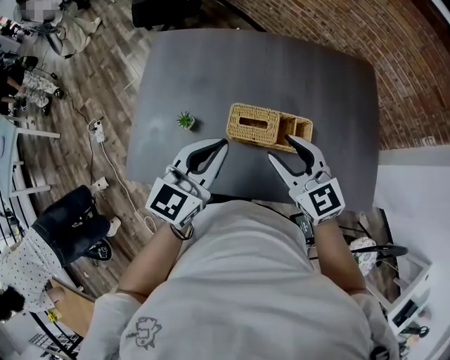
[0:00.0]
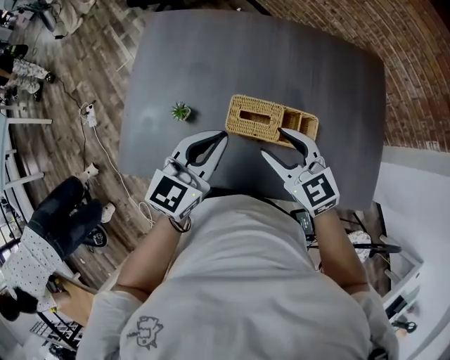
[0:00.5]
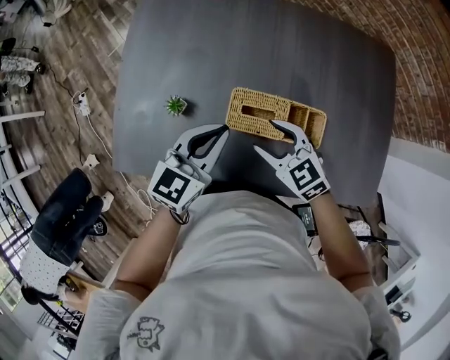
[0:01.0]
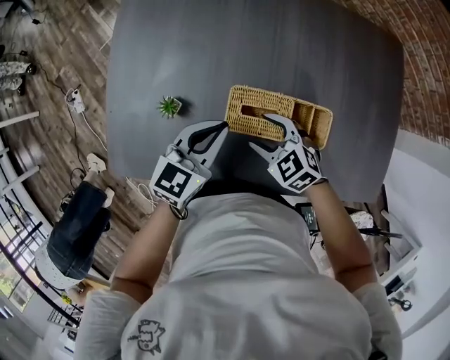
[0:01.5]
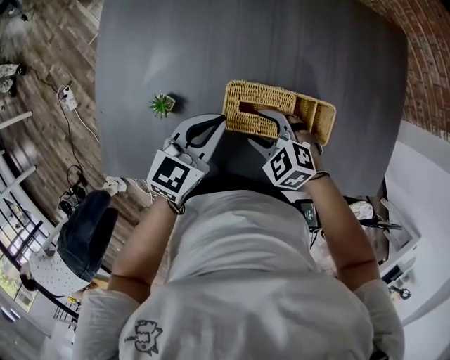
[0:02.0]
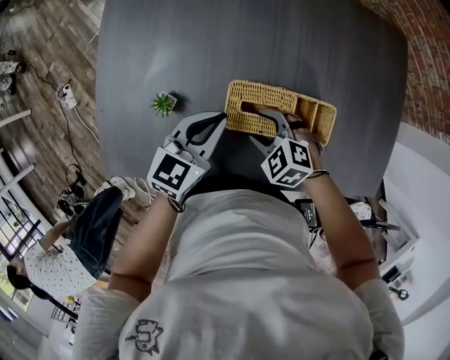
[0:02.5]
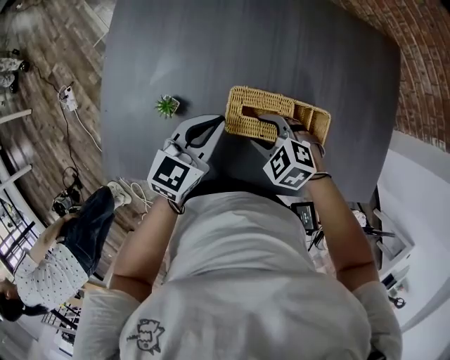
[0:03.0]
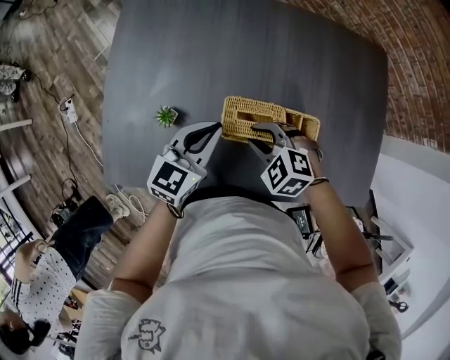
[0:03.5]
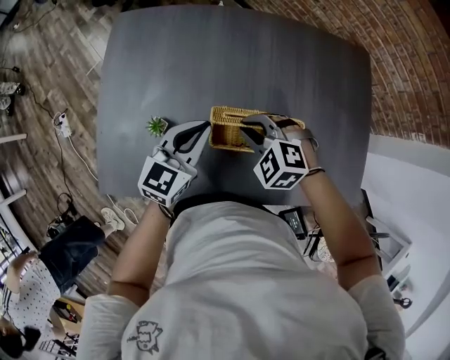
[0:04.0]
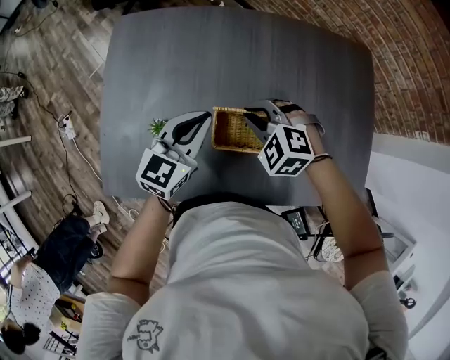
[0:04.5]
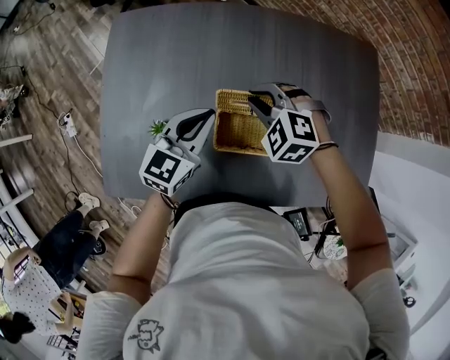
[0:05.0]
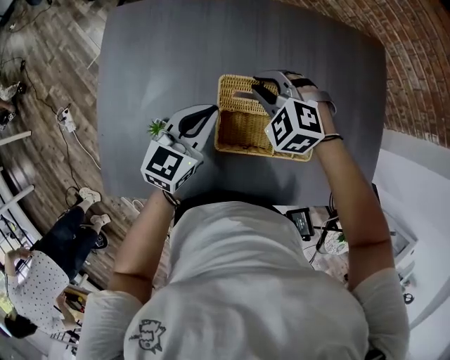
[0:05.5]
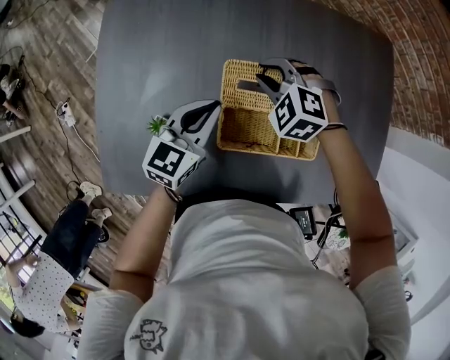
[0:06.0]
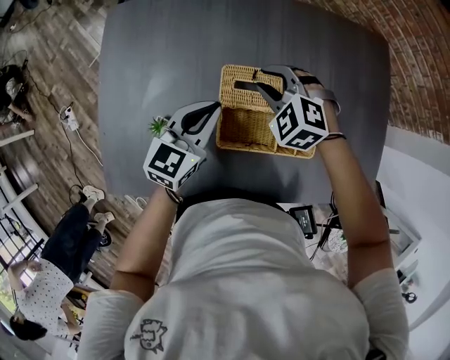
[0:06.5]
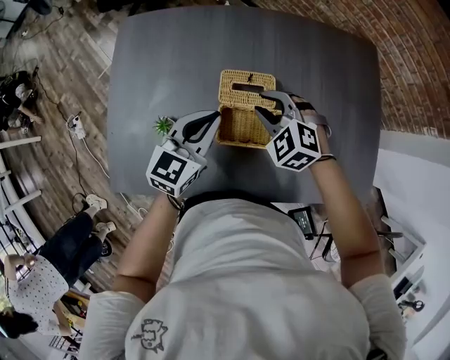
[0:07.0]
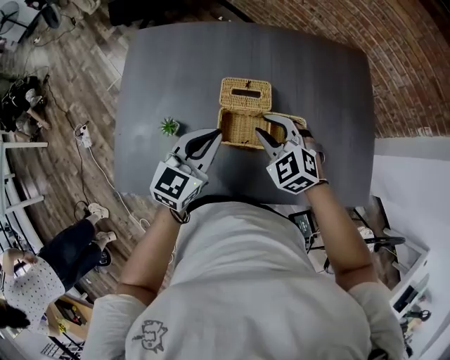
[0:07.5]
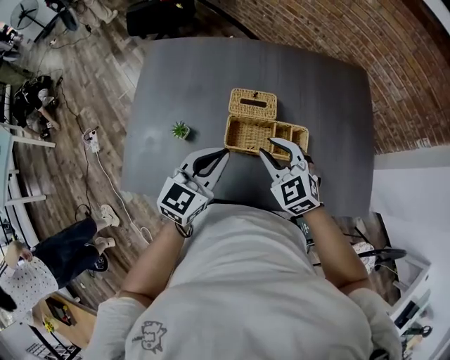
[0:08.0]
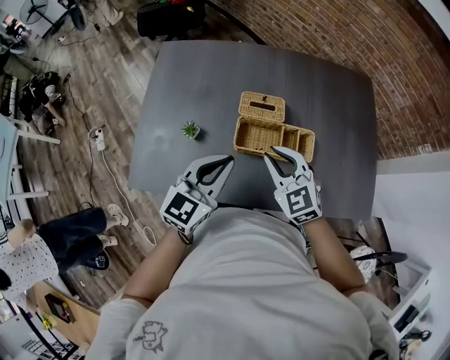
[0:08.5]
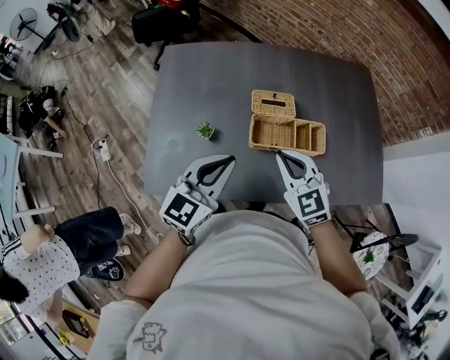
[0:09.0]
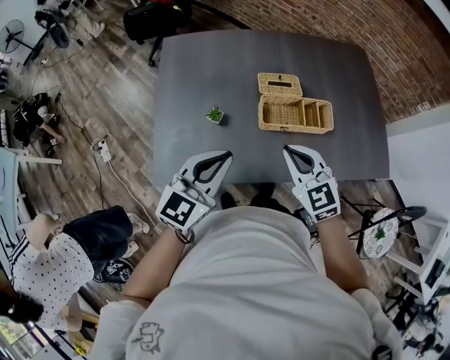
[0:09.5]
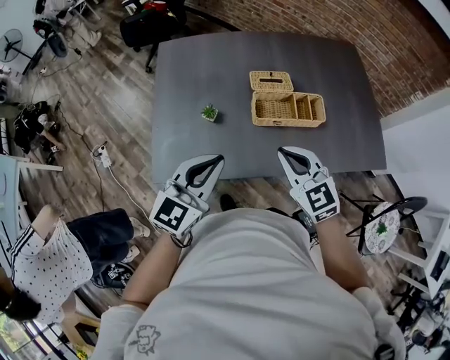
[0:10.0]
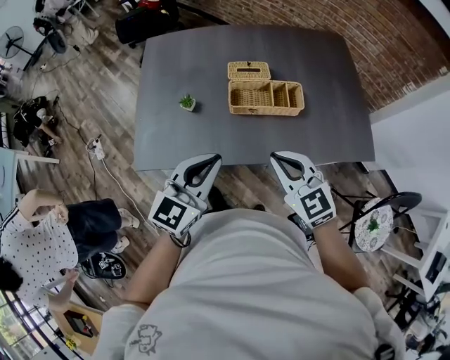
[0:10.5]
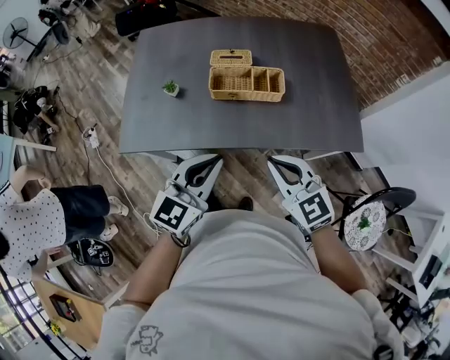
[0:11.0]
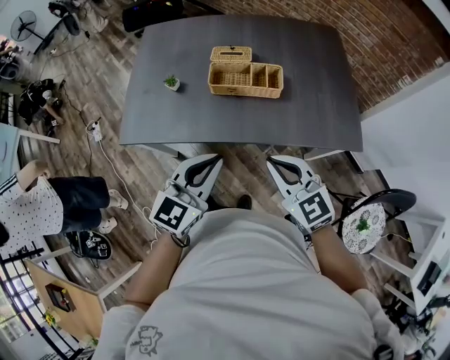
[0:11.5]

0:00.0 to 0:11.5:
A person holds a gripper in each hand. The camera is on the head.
0:00.0 to 0:02.0: The right gripper moves downward, roughly 25 cm, and tilts its fingers roughly 40 degrees downward, while the left gripper shifts approximately 20 cm downward and forward.
0:02.0 to 0:04.0: The left gripper is displaced upward by roughly 5 cm; the right gripper moves upward and forward, approximately 10 cm, and closes its fingers.
0:04.0 to 0:06.0: The right gripper shifts about 15 cm forward, while the left gripper shifts approximately 5 cm forward.
0:06.0 to 0:07.5: The two grippers go some 15 cm backward and upward. The right gripper turns by roughly 20 degrees.
0:07.5 to 0:09.5: Both grippers move backward, to the left and upward, approximately 20 cm. The right gripper rotates roughly 30 degrees, and closes.
0:09.5 to 0:11.5: The left gripper moves to the right and backward, approximately 25 cm; the right gripper shifts some 25 cm backward and to the right.

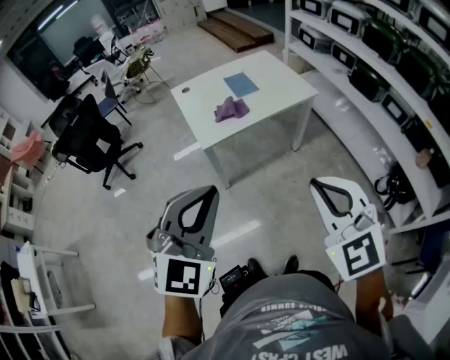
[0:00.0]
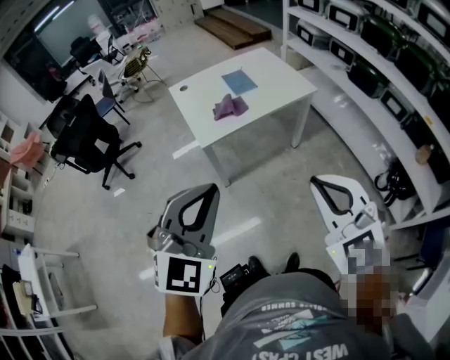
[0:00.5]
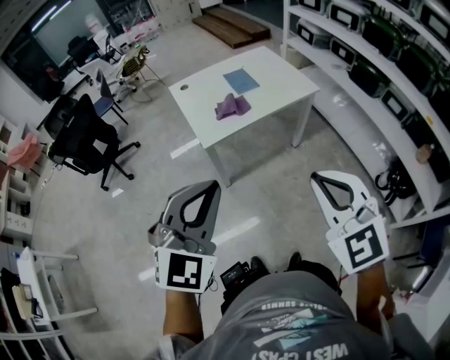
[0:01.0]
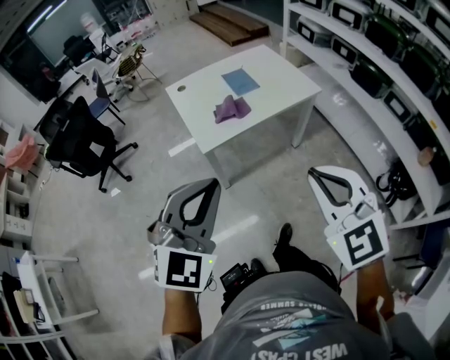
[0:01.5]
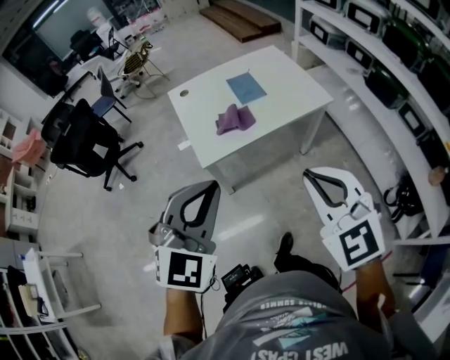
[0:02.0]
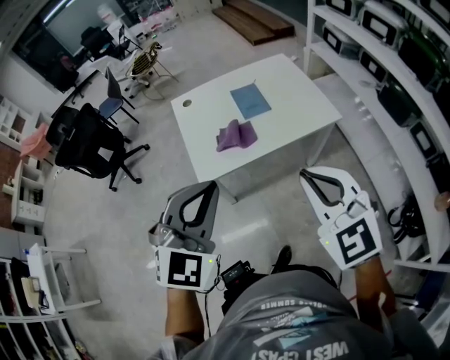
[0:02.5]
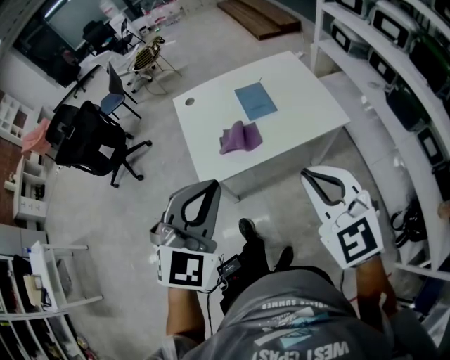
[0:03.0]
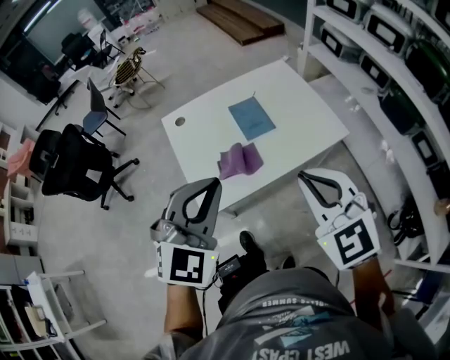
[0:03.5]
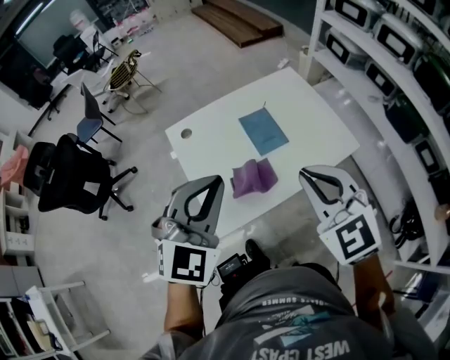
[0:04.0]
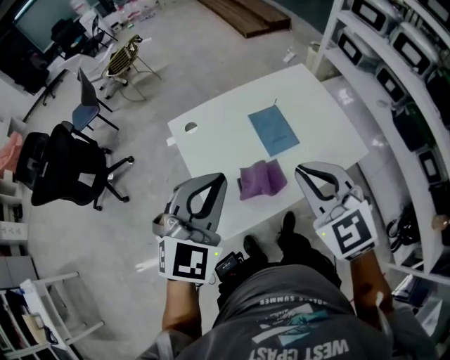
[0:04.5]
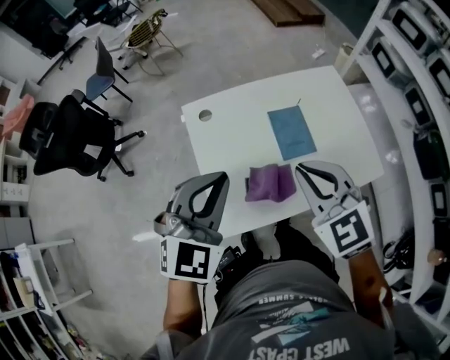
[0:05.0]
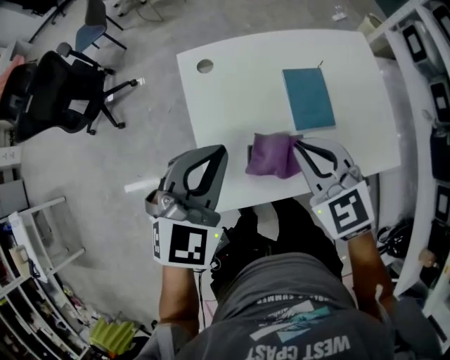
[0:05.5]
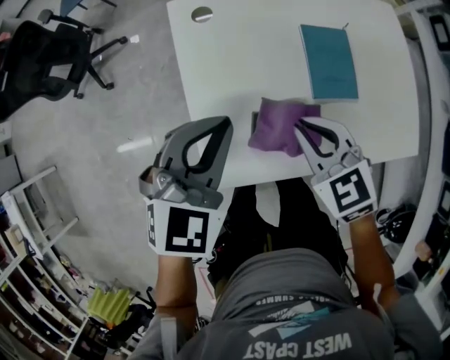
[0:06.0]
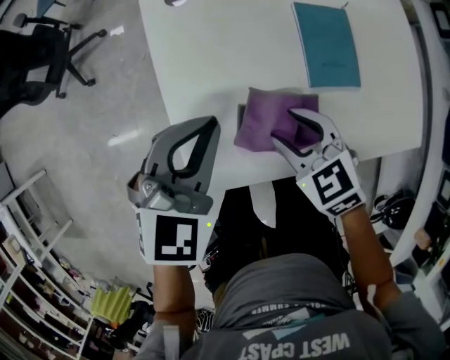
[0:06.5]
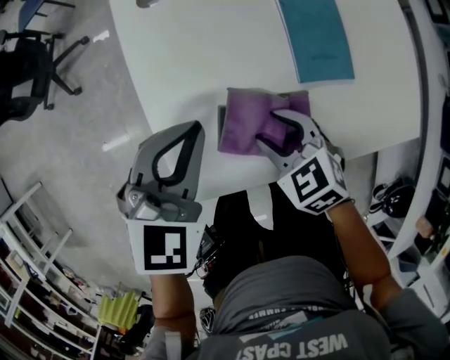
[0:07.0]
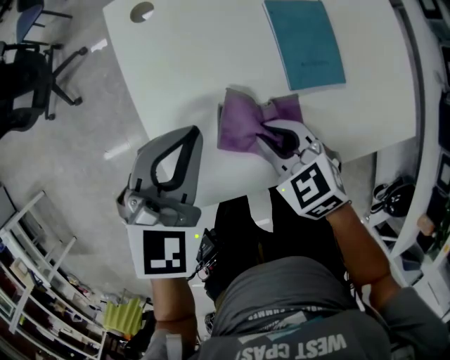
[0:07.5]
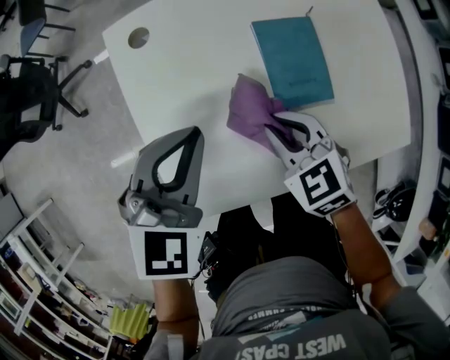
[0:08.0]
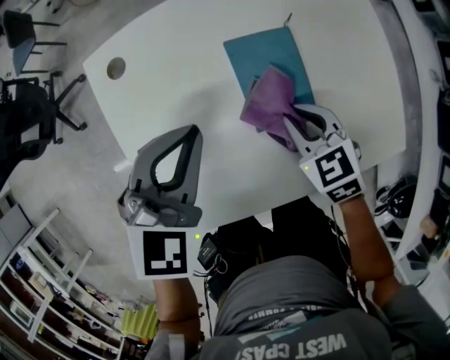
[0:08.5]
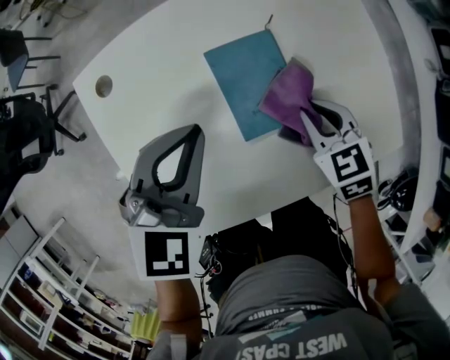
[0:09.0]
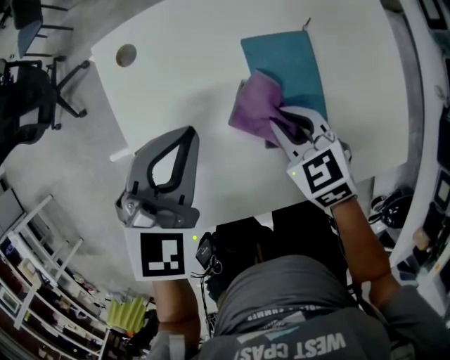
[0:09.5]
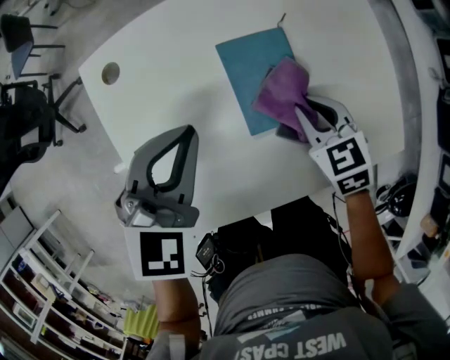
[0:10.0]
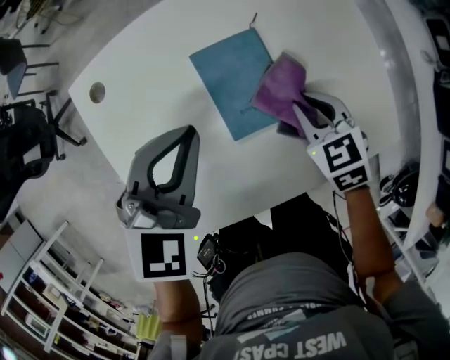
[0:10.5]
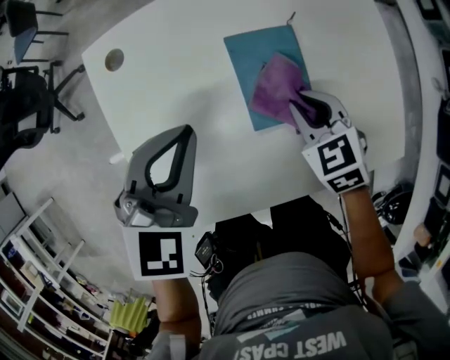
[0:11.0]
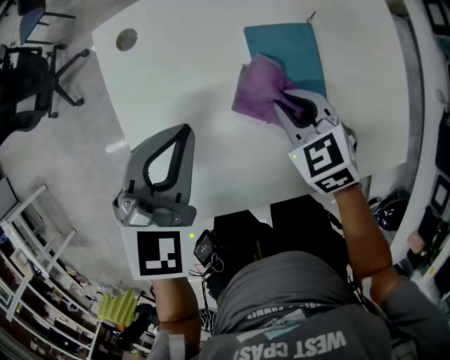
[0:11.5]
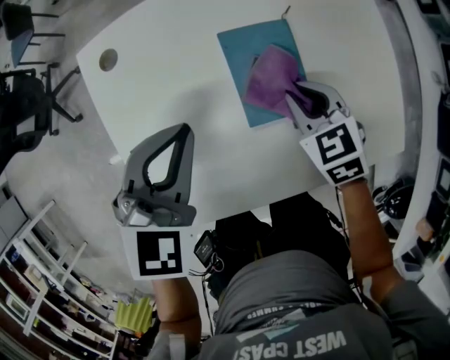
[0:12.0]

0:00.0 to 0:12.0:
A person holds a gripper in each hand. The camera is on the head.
0:00.0 to 0:02.0: Both grippers move forward, some 20 cm.
0:02.0 to 0:04.0: Both grippers move forward, roughly 35 cm.
0:04.0 to 0:06.0: The grippers both shift downward and forward by some 30 cm. The right gripper changes its angle by about 30 degrees, while the left gripper rotates approximately 30 degrees.
0:06.0 to 0:08.0: The left gripper travels to the right by some 5 cm. The right gripper is displaced downward by approximately 10 cm, and opens, then closes again.
0:08.0 to 0:10.0: The left gripper moves forward and to the right, about 10 cm. The right gripper swings left and right, approximately 20 cm each way, with 2 reversals.
0:10.0 to 0:12.0: The right gripper swings left and right, roughly 15 cm each way, with 2 reversals. Meanwhile the left gripper goes to the right and returns, roughly 5 cm each way.

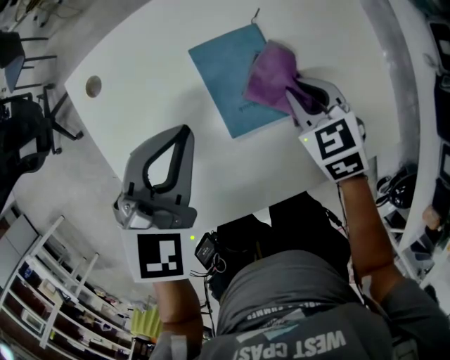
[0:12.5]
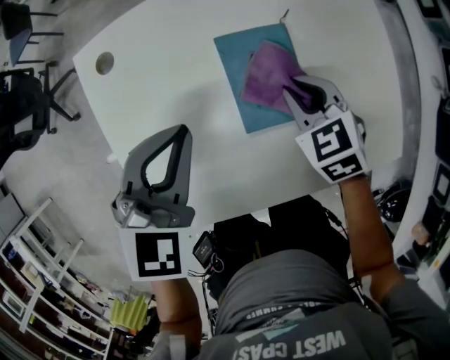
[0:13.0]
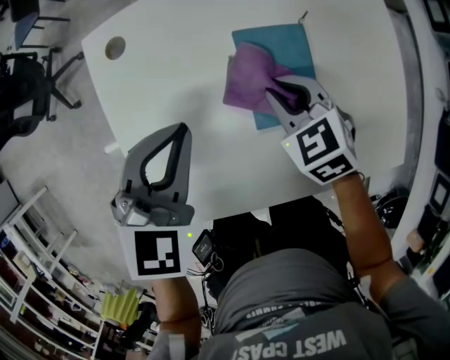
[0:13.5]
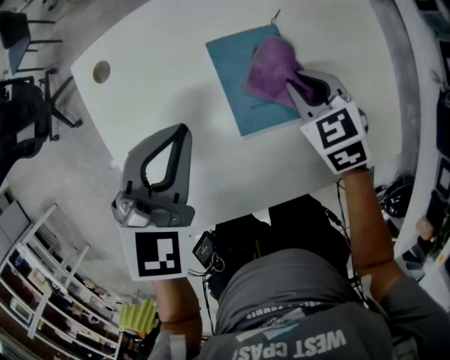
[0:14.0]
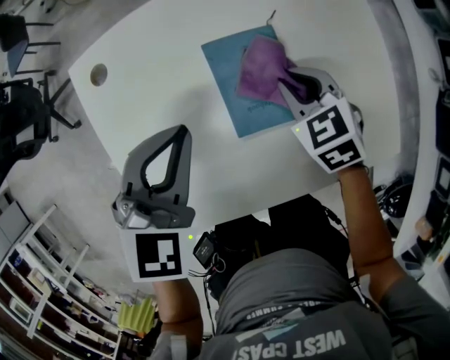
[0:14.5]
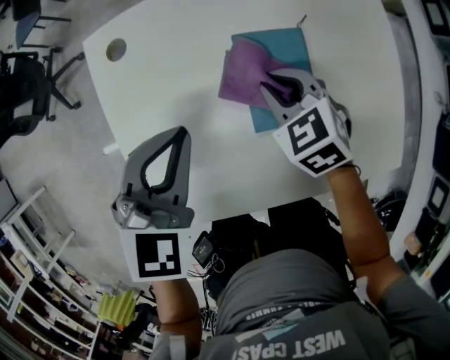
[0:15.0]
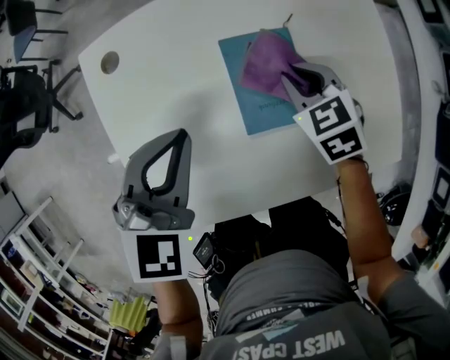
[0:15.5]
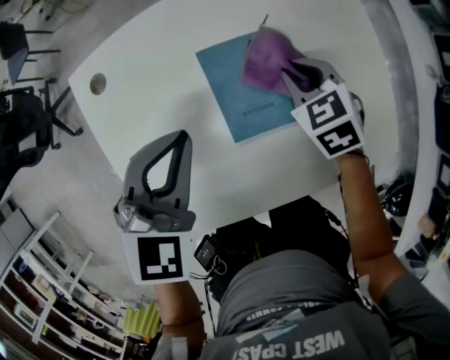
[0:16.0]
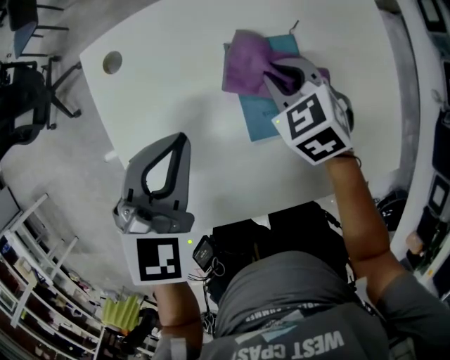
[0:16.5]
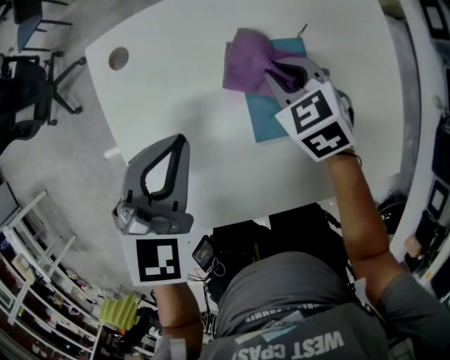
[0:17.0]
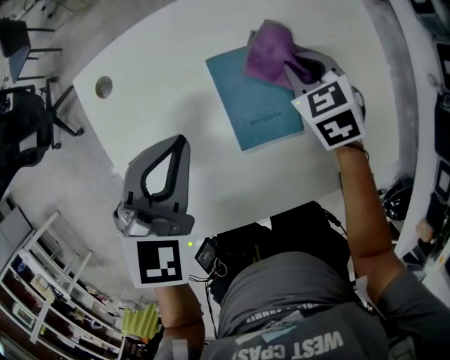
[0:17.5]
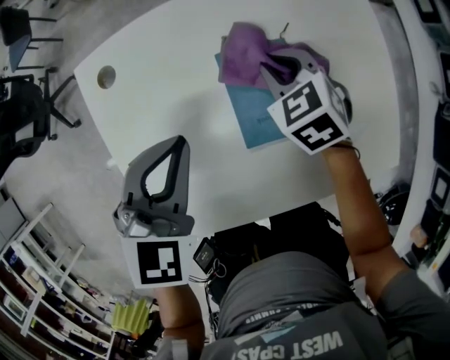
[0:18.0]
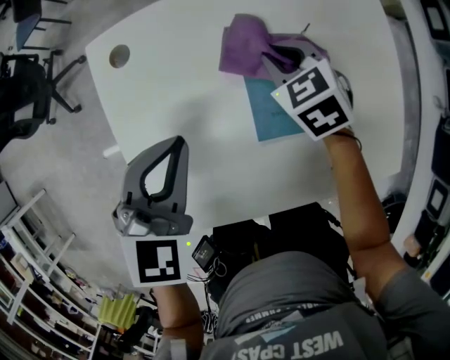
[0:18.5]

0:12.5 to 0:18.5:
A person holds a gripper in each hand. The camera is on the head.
0:12.5 to 0:14.5: The right gripper goes to the left and returns, approximately 10 cm each way.
0:14.5 to 0:16.5: The right gripper swings left and right, about 10 cm each way, with 2 reversals.
0:16.5 to 0:18.5: The right gripper goes to the right and returns, some 10 cm each way.
